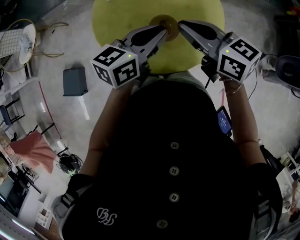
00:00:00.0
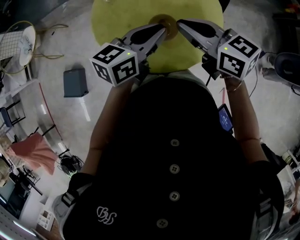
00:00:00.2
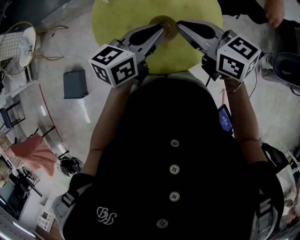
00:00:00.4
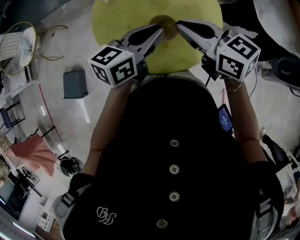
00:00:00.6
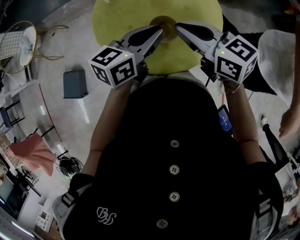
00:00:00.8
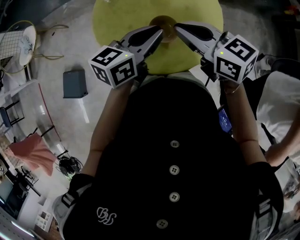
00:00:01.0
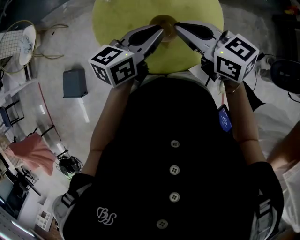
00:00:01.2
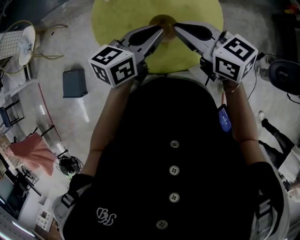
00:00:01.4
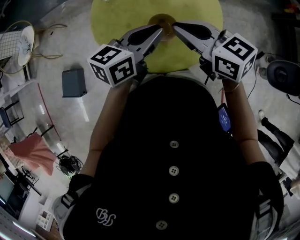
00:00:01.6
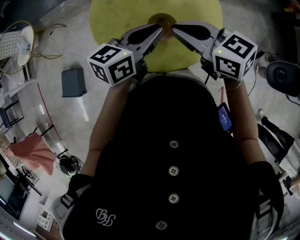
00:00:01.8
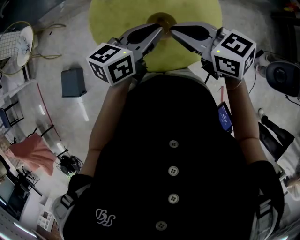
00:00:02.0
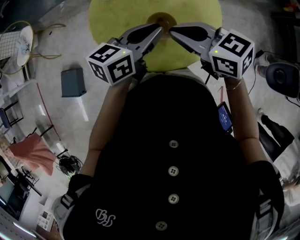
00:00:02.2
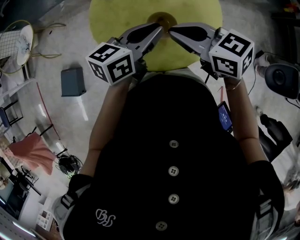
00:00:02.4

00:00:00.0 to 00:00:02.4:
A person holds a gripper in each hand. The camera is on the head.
00:00:00.0 to 00:00:02.4: The grippers move only a little.

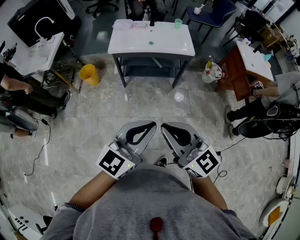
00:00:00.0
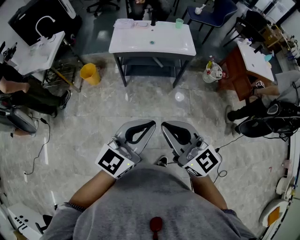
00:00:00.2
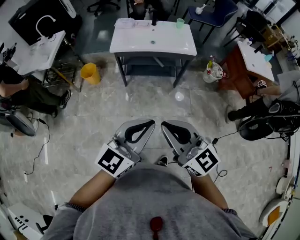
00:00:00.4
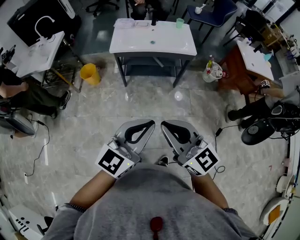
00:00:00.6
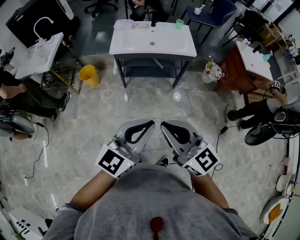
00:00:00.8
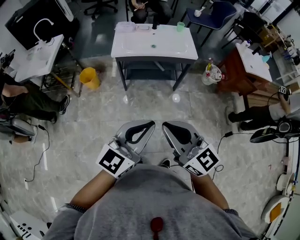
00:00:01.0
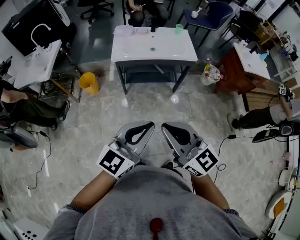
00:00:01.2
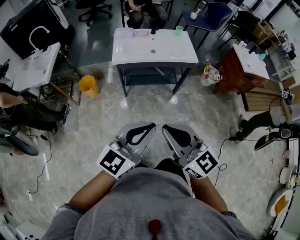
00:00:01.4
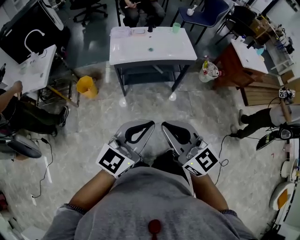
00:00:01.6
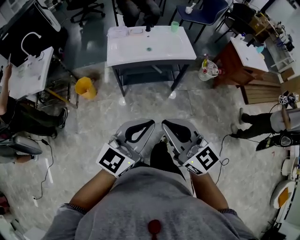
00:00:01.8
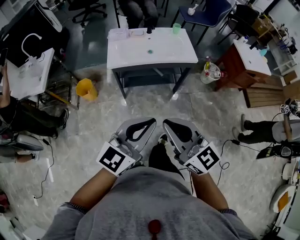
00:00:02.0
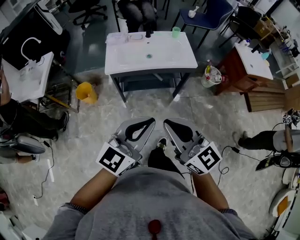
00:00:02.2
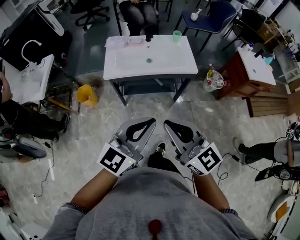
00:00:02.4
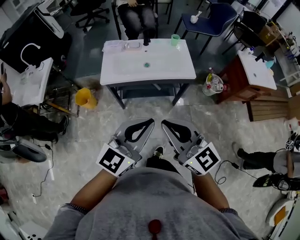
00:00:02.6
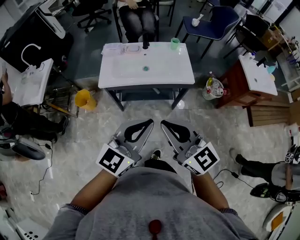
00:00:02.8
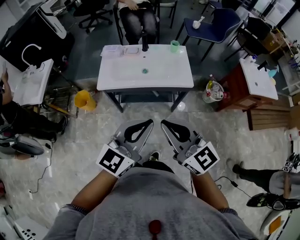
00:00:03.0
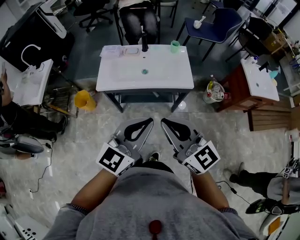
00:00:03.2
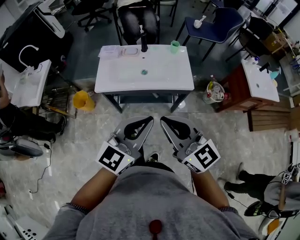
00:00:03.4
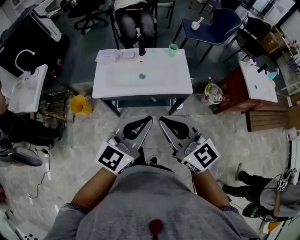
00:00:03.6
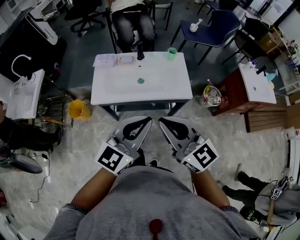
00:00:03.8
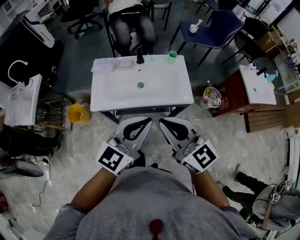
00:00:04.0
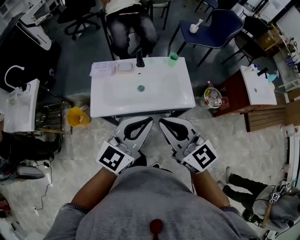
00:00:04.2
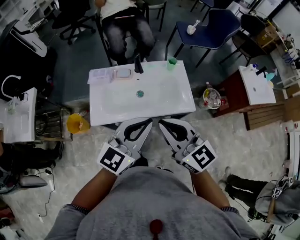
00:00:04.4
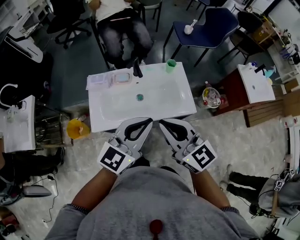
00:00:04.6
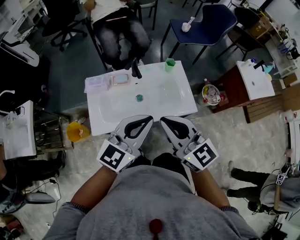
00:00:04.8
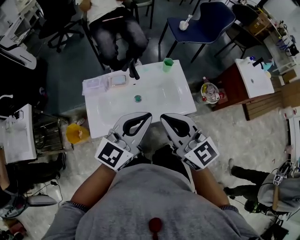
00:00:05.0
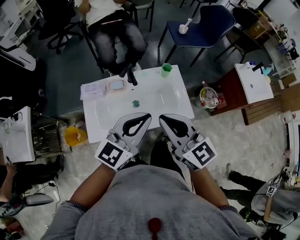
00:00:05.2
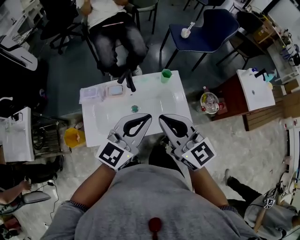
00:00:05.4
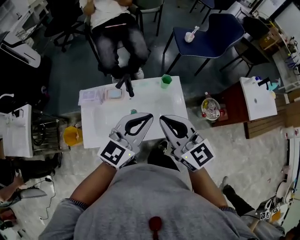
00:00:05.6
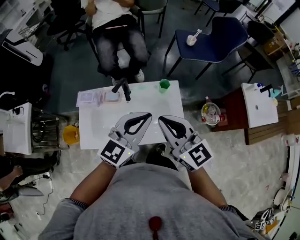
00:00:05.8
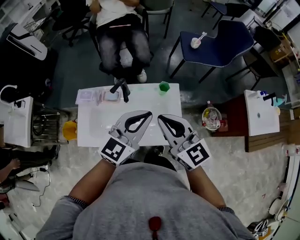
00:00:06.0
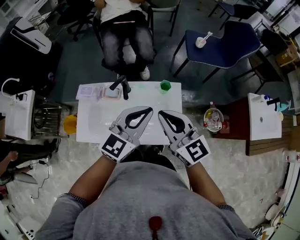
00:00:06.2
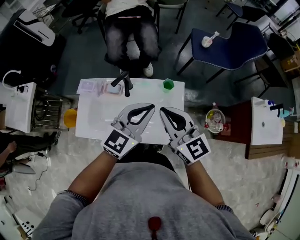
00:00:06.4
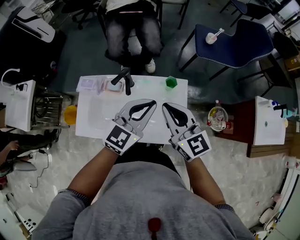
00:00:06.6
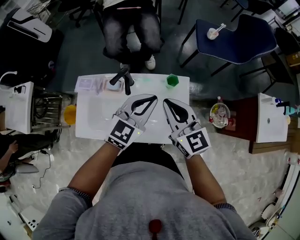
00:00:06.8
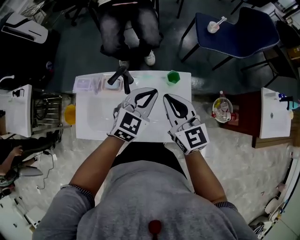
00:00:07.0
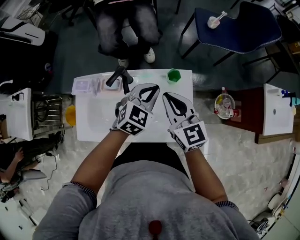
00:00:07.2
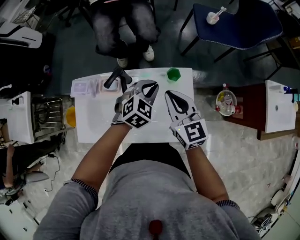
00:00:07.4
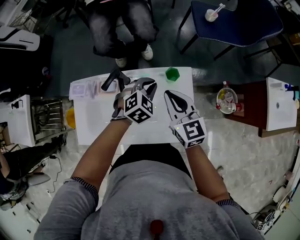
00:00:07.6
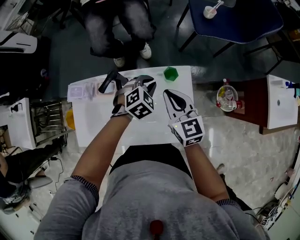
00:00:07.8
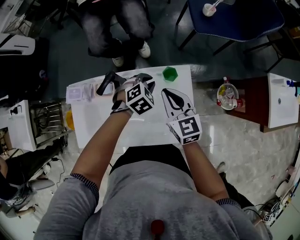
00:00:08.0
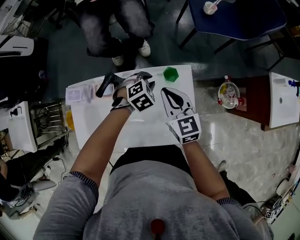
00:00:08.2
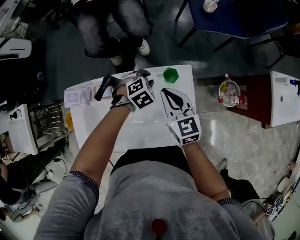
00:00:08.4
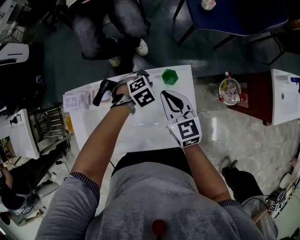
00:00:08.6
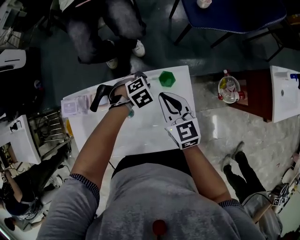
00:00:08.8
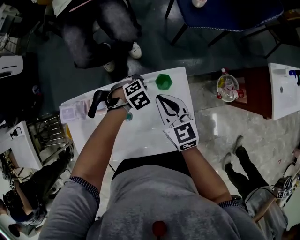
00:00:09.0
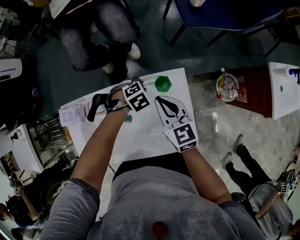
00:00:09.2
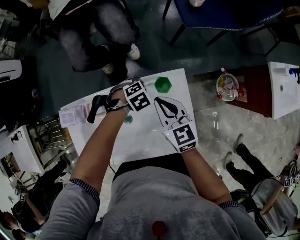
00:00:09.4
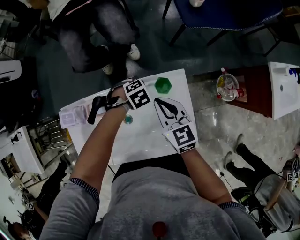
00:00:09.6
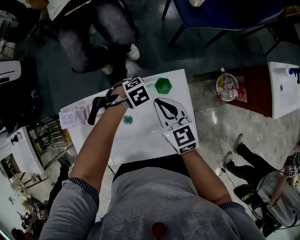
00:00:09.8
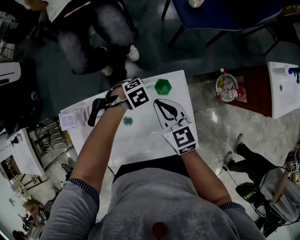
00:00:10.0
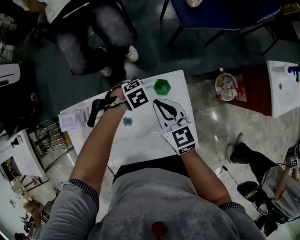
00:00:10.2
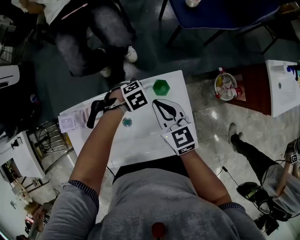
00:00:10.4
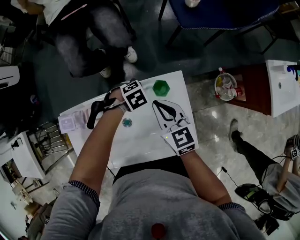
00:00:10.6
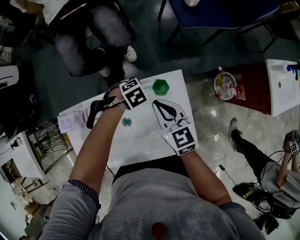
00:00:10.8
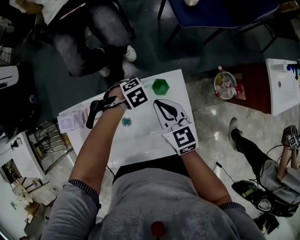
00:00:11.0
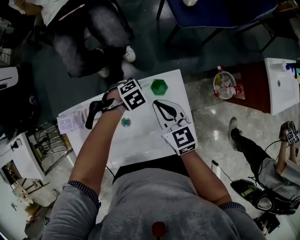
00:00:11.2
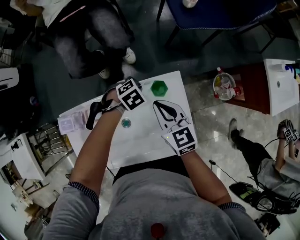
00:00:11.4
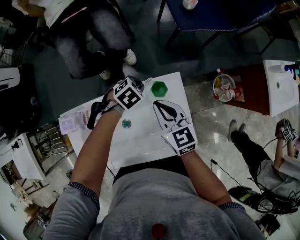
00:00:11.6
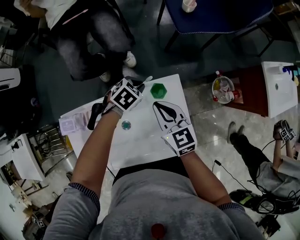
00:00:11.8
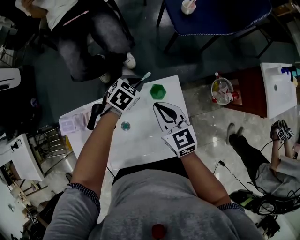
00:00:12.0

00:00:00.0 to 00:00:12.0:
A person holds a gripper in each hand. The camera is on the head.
00:00:00.0 to 00:00:01.6: Both grippers move to the left and forward, roughly 15 cm.
00:00:01.6 to 00:00:03.0: Both grippers move forward and to the right, some 25 cm.
00:00:03.0 to 00:00:04.4: The two grippers go some 25 cm forward.
00:00:04.4 to 00:00:06.0: Both grippers travel together forward and to the right, approximately 25 cm.
00:00:06.0 to 00:00:07.6: Both grippers travel together downward and forward, approximately 25 cm. The left gripper points its fingers some 40 degrees further downward.
00:00:07.6 to 00:00:09.0: The right gripper travels downward by approximately 5 cm. The left gripper is displaced downward by approximately 15 cm, changes its angle by approximately 30 degrees, and opens its fingers.
00:00:09.0 to 00:00:10.4: The grippers stay close to where they were, moving slightly.
00:00:10.4 to 00:00:12.0: The left gripper moves upward, approximately 10 cm, rotates approximately 30 degrees, and closes its fingers.

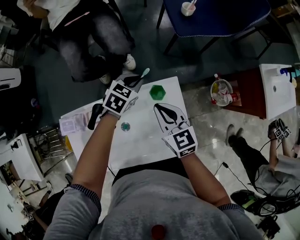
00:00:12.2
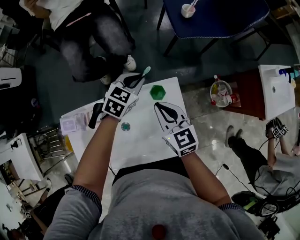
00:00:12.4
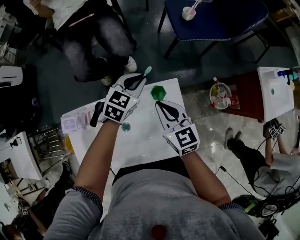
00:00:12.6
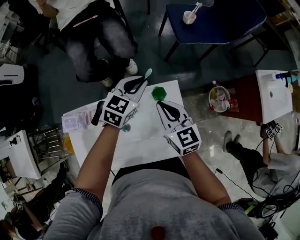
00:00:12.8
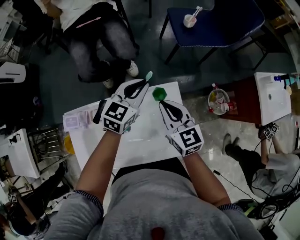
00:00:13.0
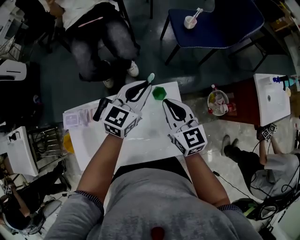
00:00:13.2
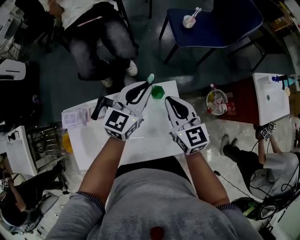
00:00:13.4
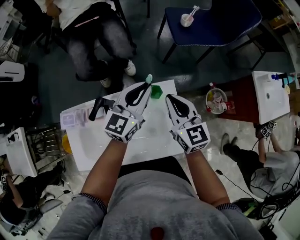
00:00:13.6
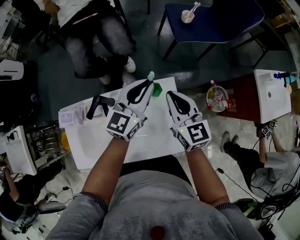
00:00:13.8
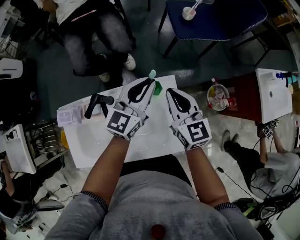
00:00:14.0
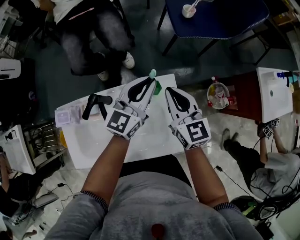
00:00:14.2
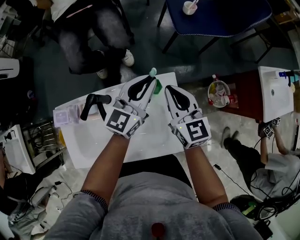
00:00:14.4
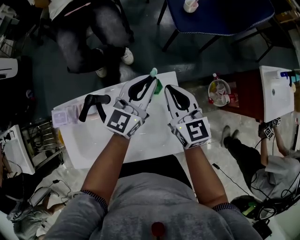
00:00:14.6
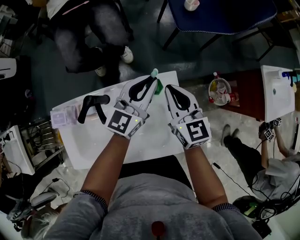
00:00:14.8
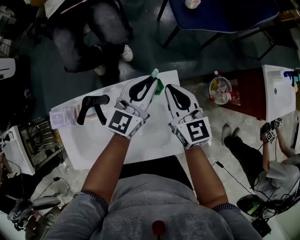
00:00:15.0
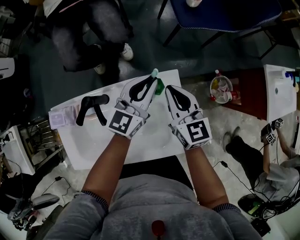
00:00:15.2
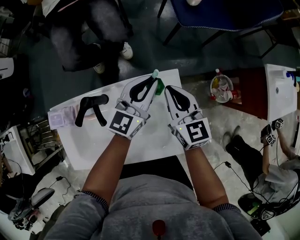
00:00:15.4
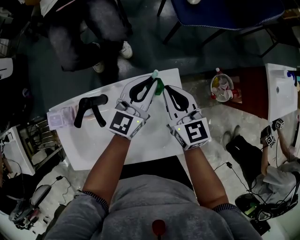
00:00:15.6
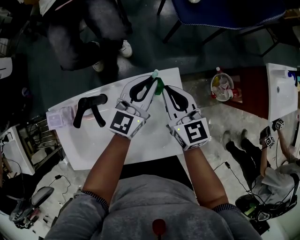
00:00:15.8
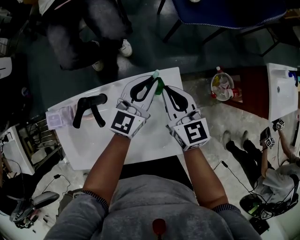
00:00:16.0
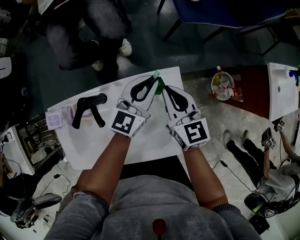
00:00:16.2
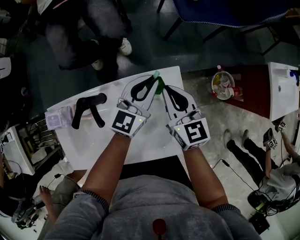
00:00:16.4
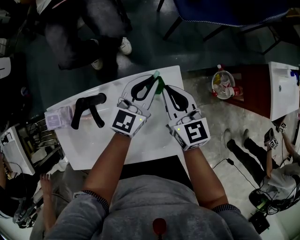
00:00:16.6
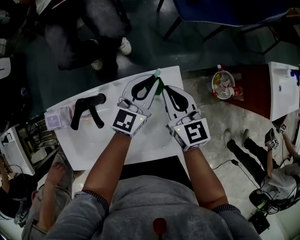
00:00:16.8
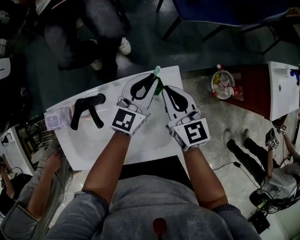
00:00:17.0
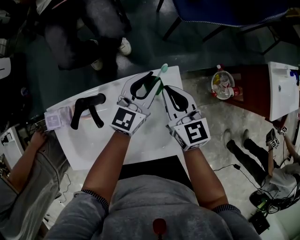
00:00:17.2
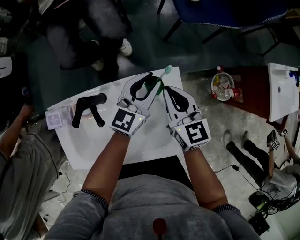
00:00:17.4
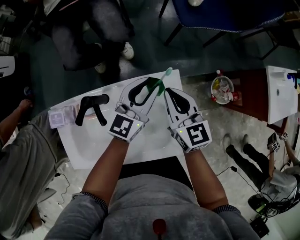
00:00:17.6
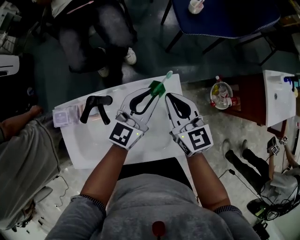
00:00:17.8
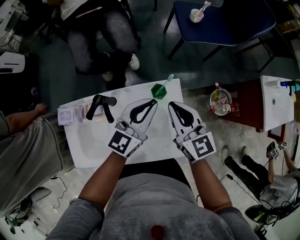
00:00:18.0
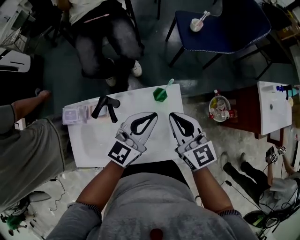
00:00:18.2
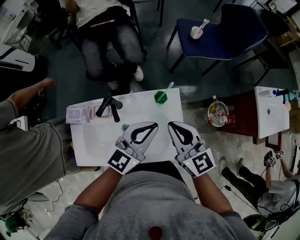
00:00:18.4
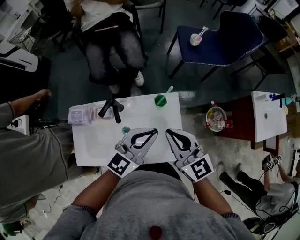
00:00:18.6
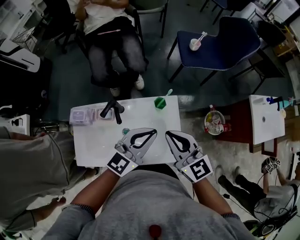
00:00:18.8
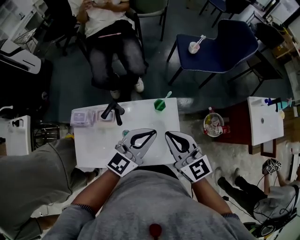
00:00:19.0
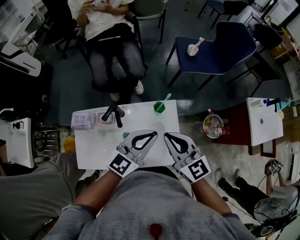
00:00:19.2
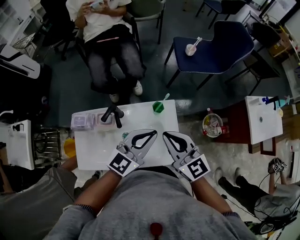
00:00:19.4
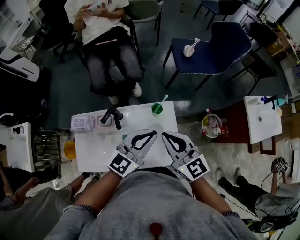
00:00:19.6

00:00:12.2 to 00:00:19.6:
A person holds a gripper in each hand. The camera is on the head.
00:00:12.2 to 00:00:13.6: The left gripper is displaced upward by about 15 cm, and tilts its fingers roughly 40 degrees upward. The right gripper goes some 10 cm upward.
00:00:13.6 to 00:00:15.2: Both grippers travel together downward, some 10 cm.
00:00:15.2 to 00:00:16.6: The grippers move only a little.
00:00:16.6 to 00:00:18.2: The grippers both shift upward and backward by some 15 cm.
00:00:18.2 to 00:00:19.6: Both grippers move upward and backward, some 10 cm.

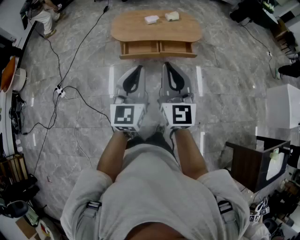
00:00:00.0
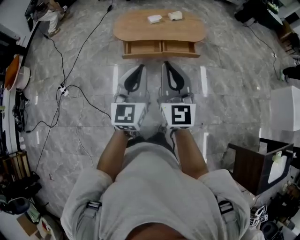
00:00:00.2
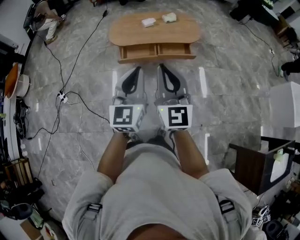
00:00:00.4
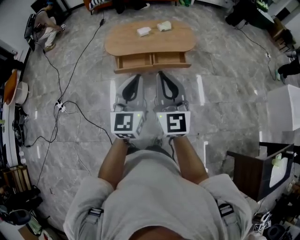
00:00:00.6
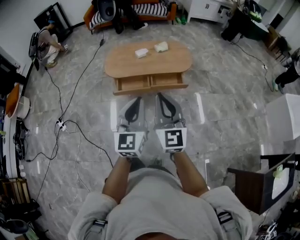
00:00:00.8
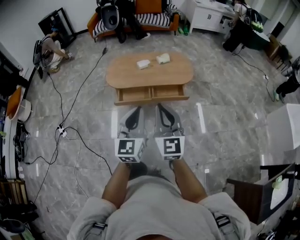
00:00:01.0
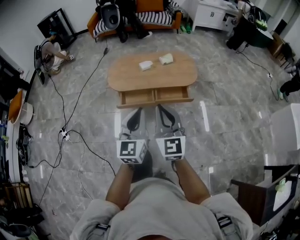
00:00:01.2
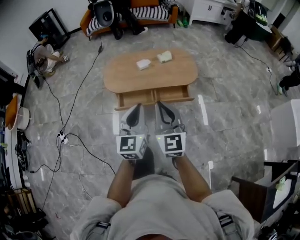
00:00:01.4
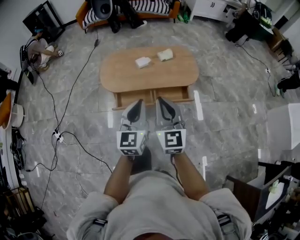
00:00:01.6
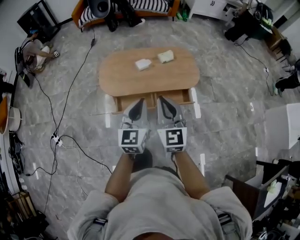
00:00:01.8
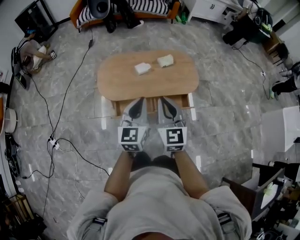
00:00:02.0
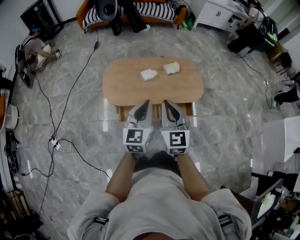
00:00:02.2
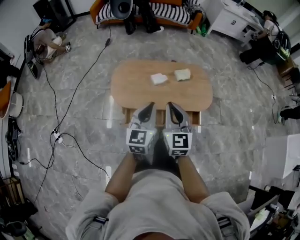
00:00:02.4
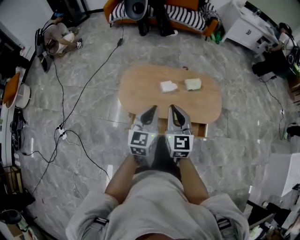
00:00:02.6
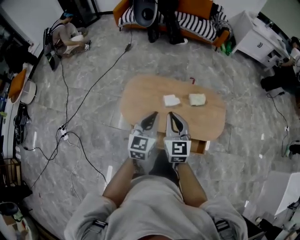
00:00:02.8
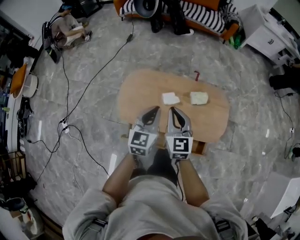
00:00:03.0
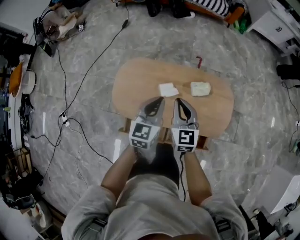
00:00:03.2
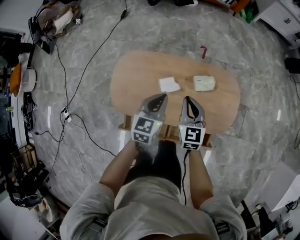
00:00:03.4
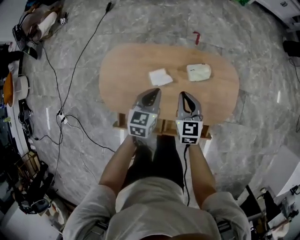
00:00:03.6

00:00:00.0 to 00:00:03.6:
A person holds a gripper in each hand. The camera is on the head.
00:00:00.0 to 00:00:01.8: The two grippers go some 35 cm forward.
00:00:01.8 to 00:00:03.6: The pair of grippers is taken forward, about 50 cm. The grippers both shift downward by approximately 30 cm. The left gripper rotates some 30 degrees. Meanwhile the right gripper rotates about 30 degrees.
